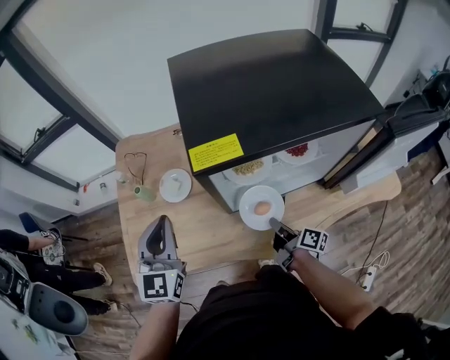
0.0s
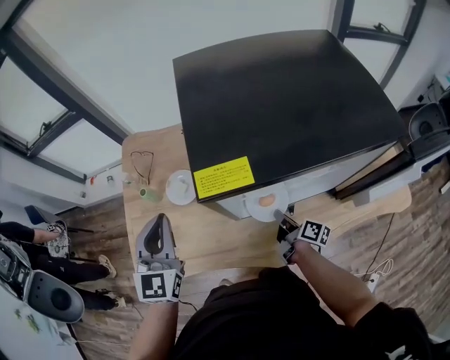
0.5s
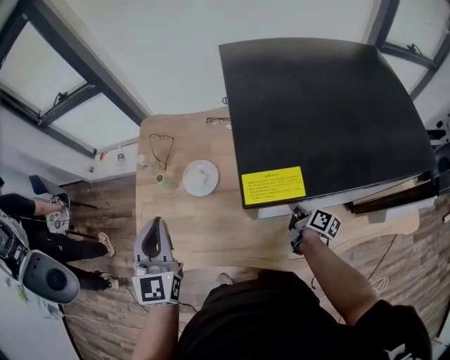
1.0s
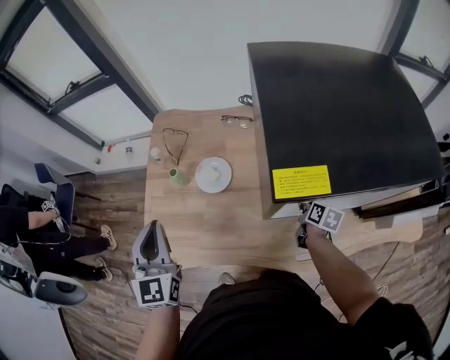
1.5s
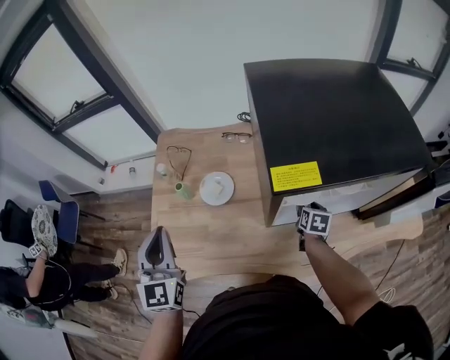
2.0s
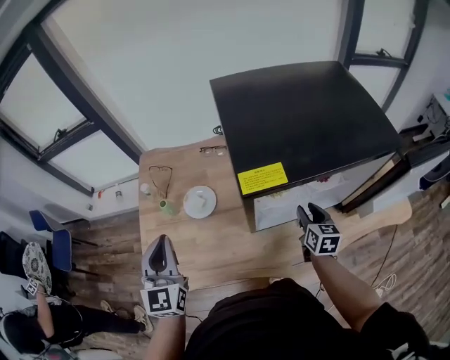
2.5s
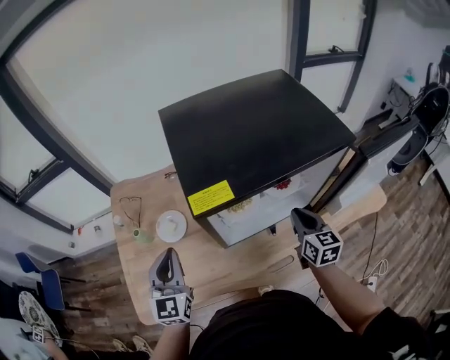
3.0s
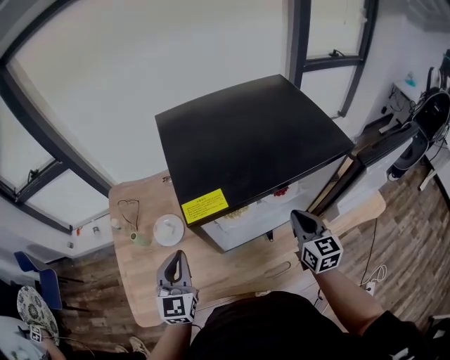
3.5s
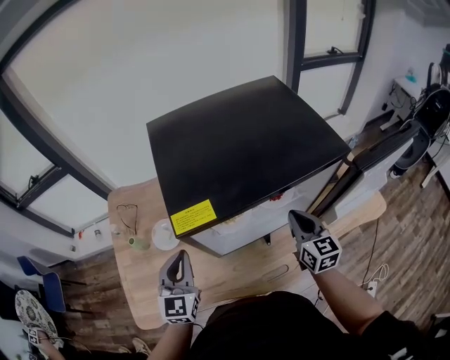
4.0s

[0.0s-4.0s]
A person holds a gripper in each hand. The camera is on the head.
0.0s to 2.0s: The right gripper goes some 15 cm forward, points its fingers about 30 degrees further downward, and opens its fingers; the left gripper moves to the left, roughly 15 cm.
2.0s to 4.0s: The left gripper heads to the right, covering some 20 cm, and turns by some 20 degrees. Meanwhile the right gripper moves upward and to the right, roughly 25 cm, points its fingers roughly 30 degrees further upward, and closes its fingers.

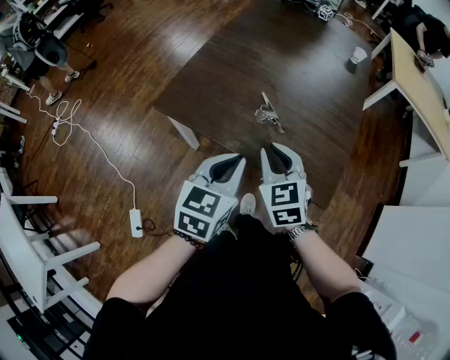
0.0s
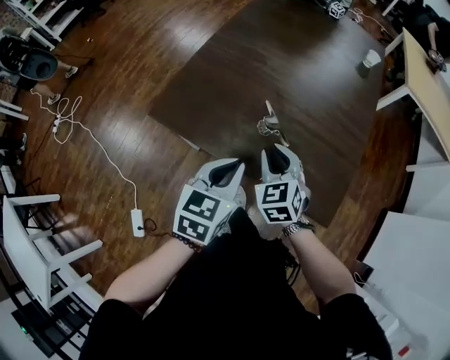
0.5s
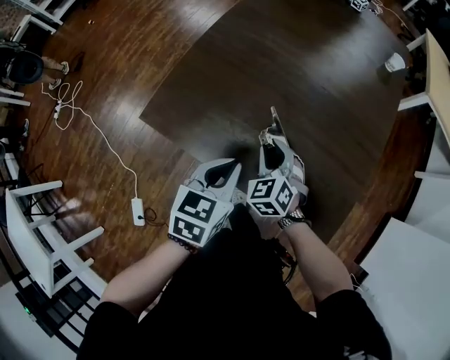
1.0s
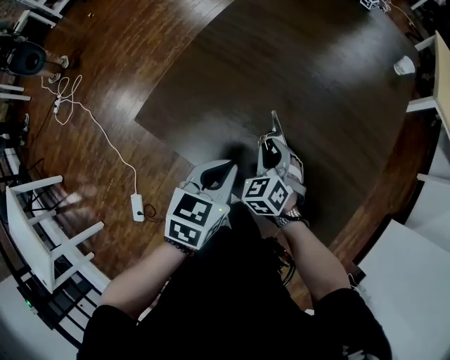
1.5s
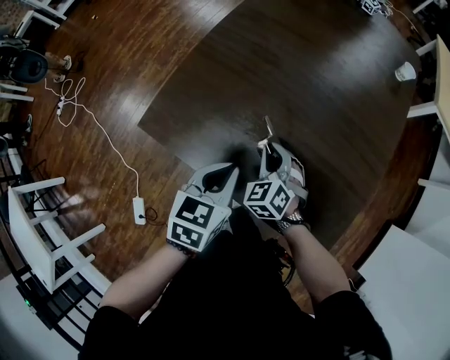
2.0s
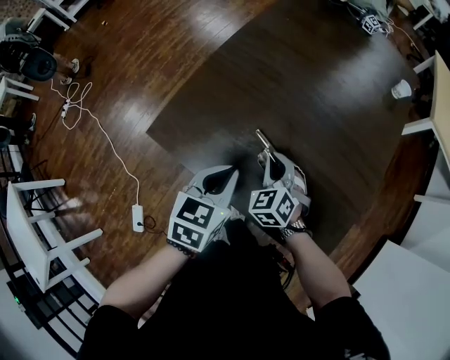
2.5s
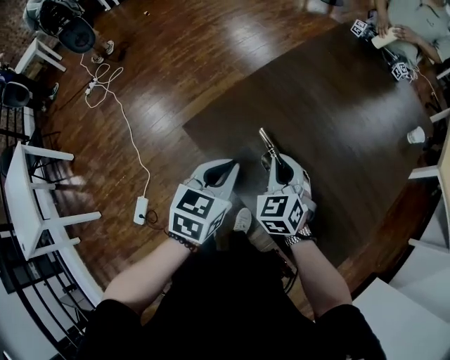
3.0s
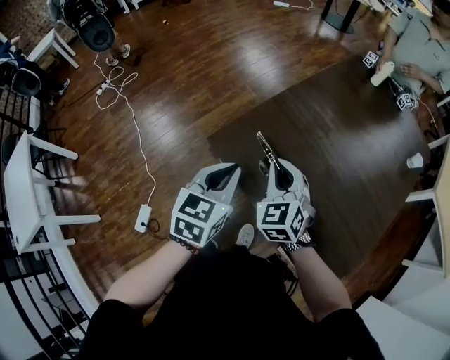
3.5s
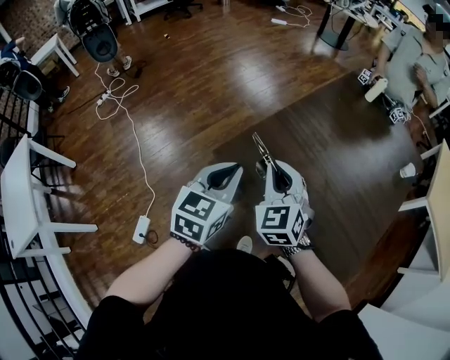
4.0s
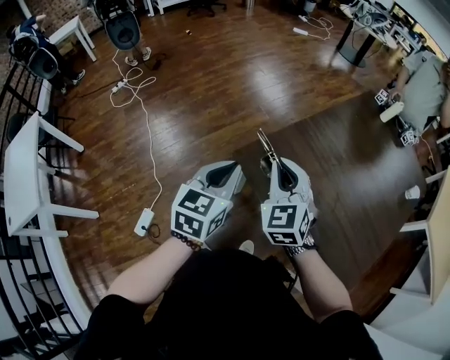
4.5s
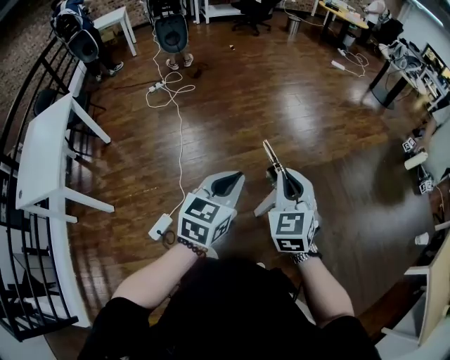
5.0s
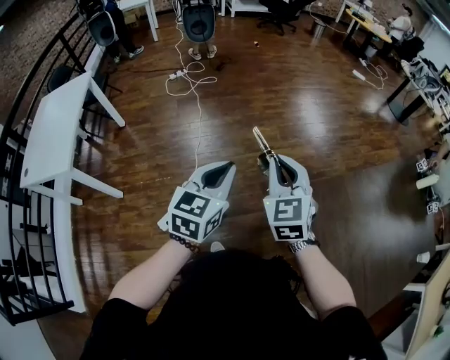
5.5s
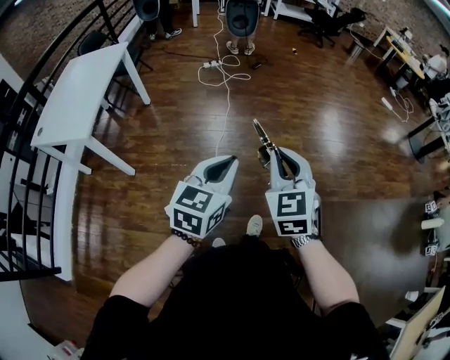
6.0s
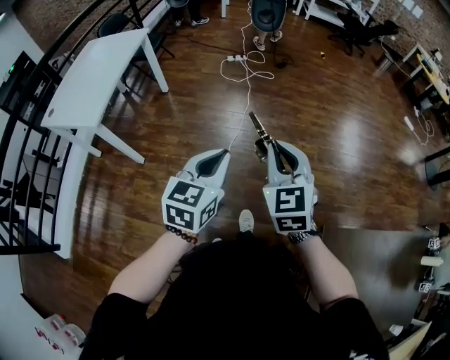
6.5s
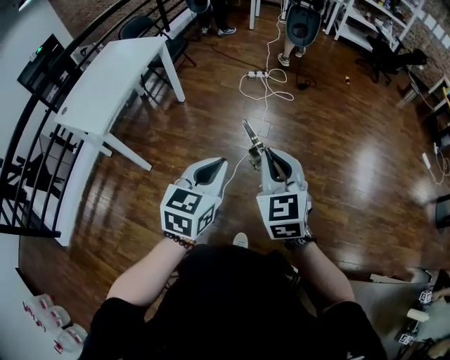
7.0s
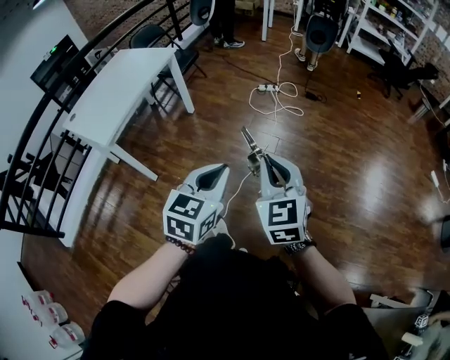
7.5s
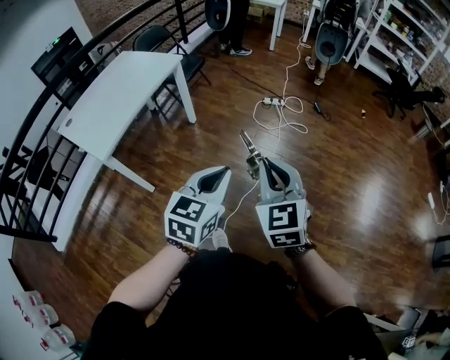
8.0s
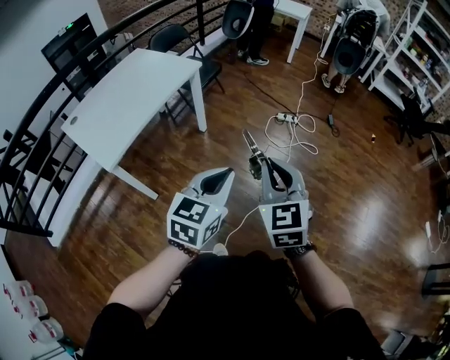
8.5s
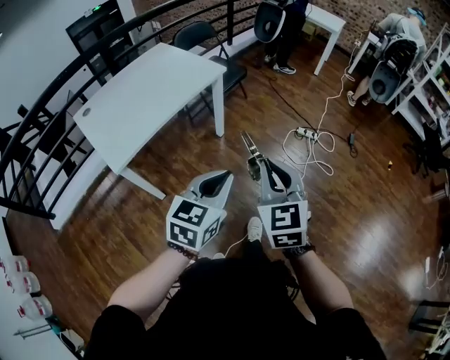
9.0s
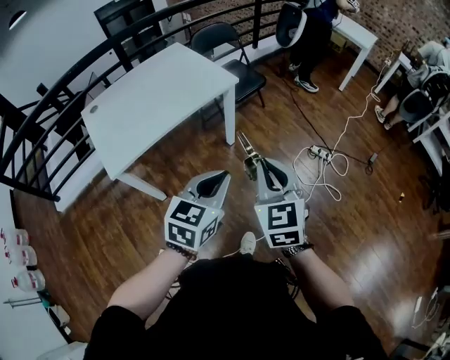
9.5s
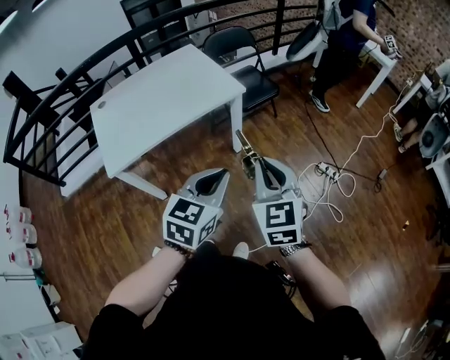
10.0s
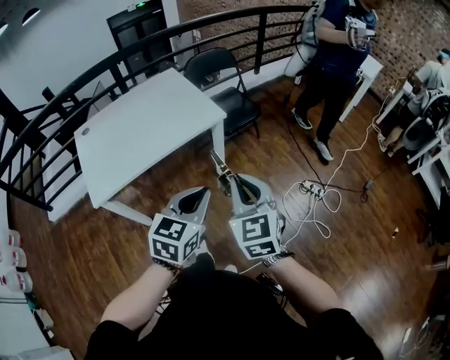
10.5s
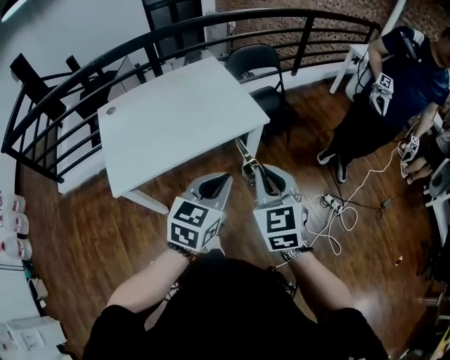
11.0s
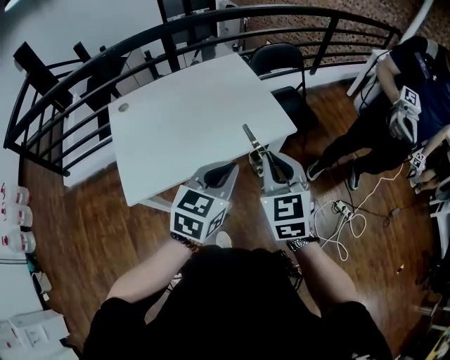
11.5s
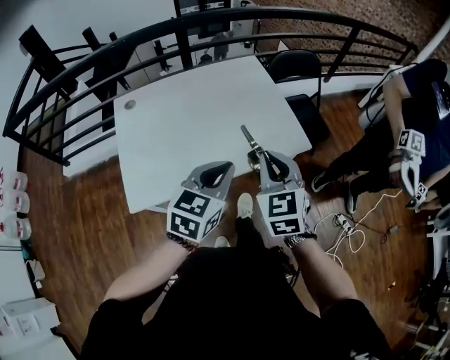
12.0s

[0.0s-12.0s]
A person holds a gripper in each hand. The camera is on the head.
0.0s to 2.0s: Both grippers move forward and downward, roughly 20 cm. The right gripper turns by about 20 degrees.
2.0s to 4.0s: The right gripper heads upward and to the left, covering some 30 cm, and swivels approximately 30 degrees; the left gripper is displaced to the left and upward by approximately 25 cm, and swivels about 30 degrees.
4.0s to 6.0s: The two grippers travel together, approximately 40 cm. The right gripper rotates roughly 40 degrees, while the left gripper turns by approximately 40 degrees.
6.0s to 8.0s: The right gripper shifts by roughly 35 cm, and rotates approximately 30 degrees. The left gripper shifts by about 35 cm, and swivels about 30 degrees.
8.0s to 10.0s: The left gripper ends up about 40 cm from where it was, and changes its angle by some 30 degrees; the right gripper shifts by about 40 cm, and swivels about 30 degrees.
10.0s to 12.0s: The two grippers go approximately 40 cm forward and to the left.

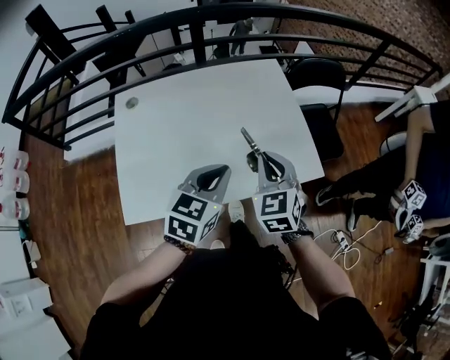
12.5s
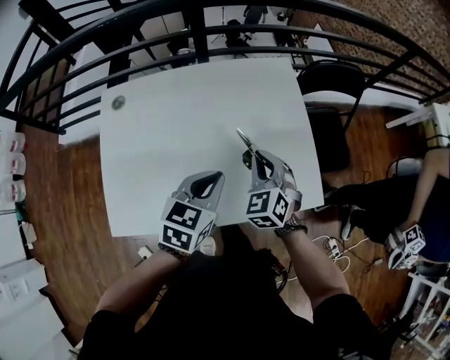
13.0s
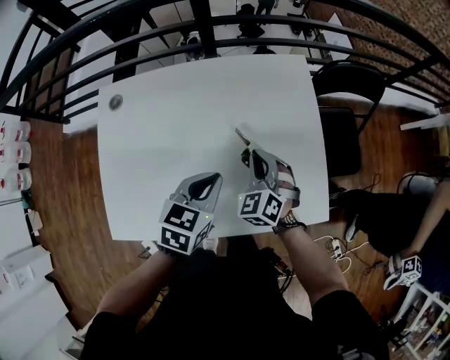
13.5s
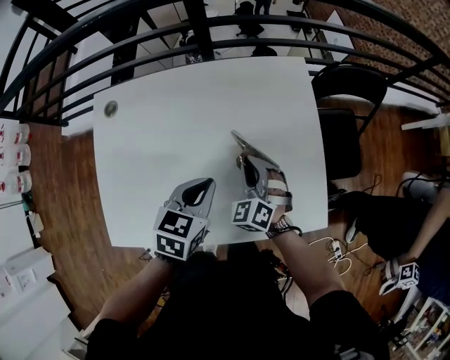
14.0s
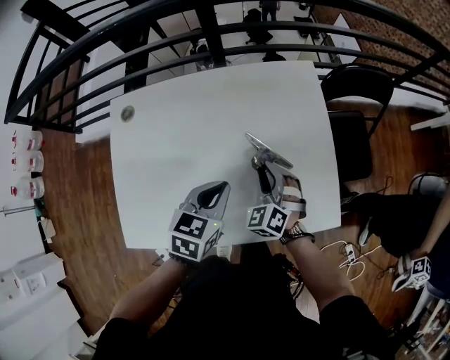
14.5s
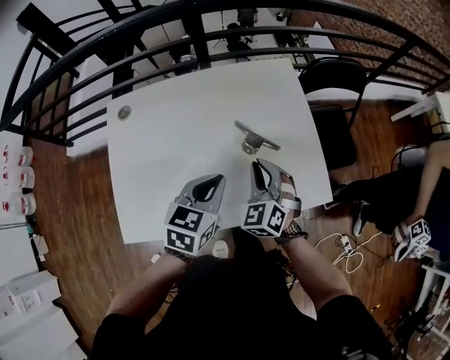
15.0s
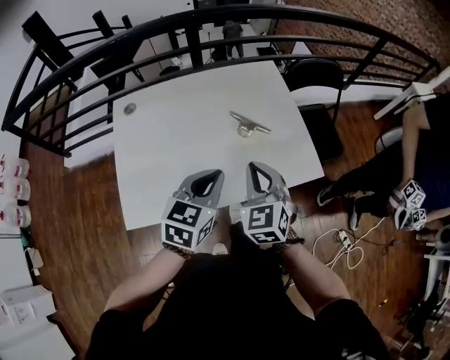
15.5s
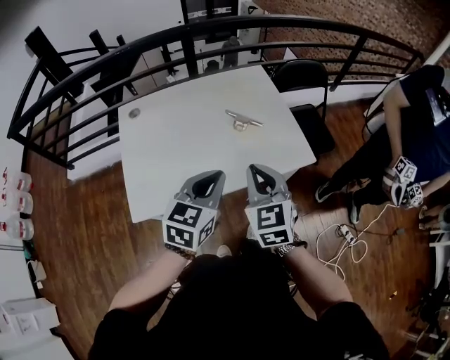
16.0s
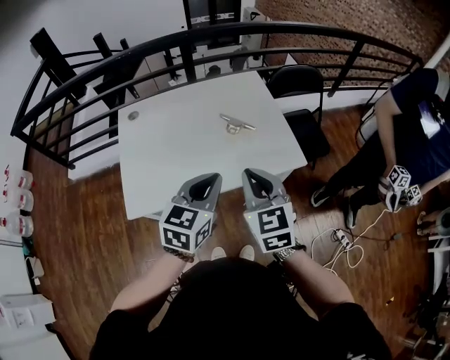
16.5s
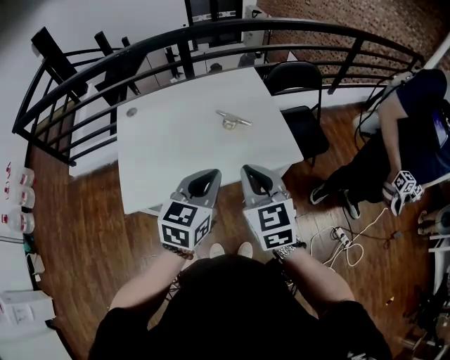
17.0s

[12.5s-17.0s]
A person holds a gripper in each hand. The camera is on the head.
12.5s to 14.5s: The left gripper moves forward and downward, approximately 15 cm; the right gripper shifts about 25 cm downward and forward, turns by approximately 30 degrees, and opens its fingers.
14.5s to 17.0s: Both grippers travel together backward and upward, approximately 35 cm. The left gripper swivels approximately 20 degrees. The right gripper changes its angle by roughly 40 degrees, and closes up.

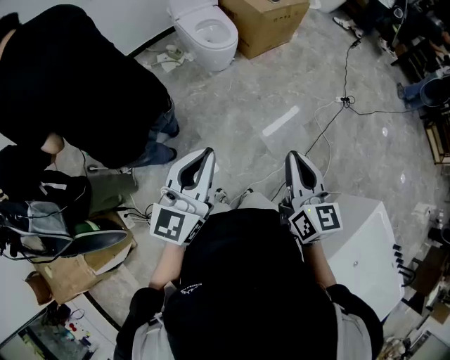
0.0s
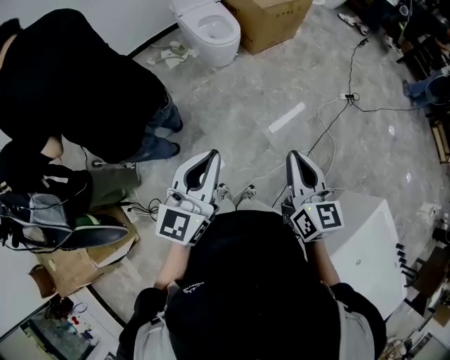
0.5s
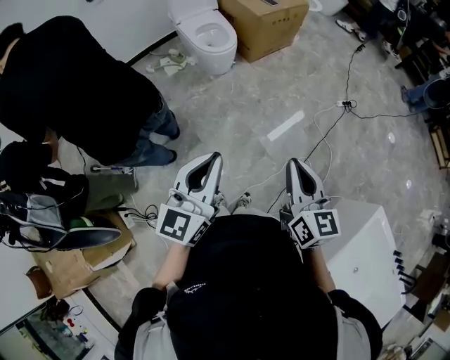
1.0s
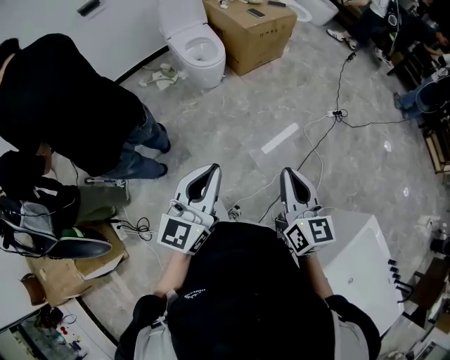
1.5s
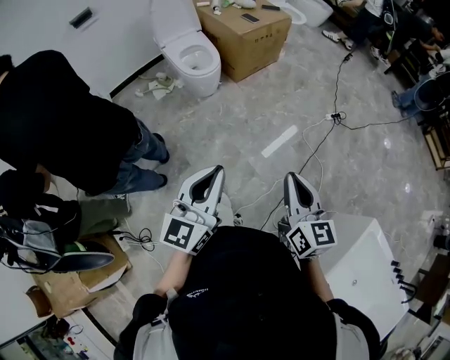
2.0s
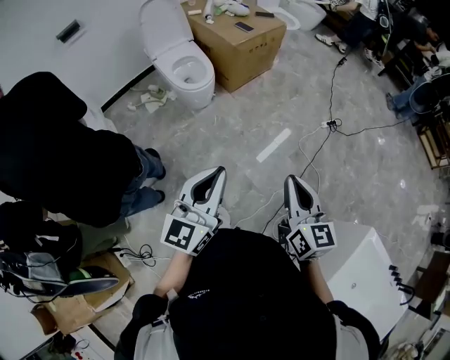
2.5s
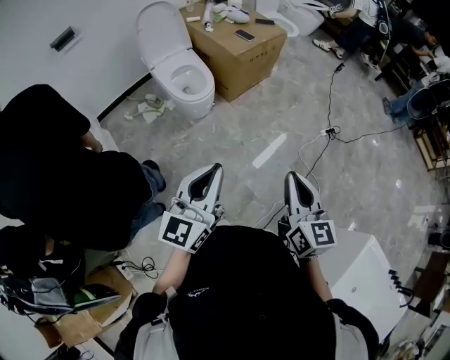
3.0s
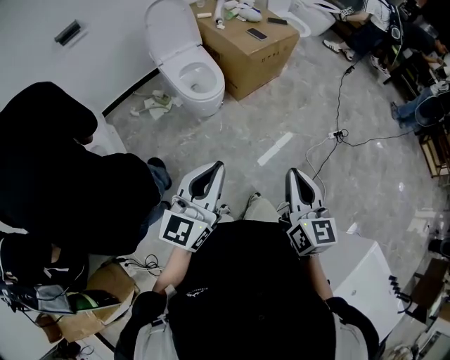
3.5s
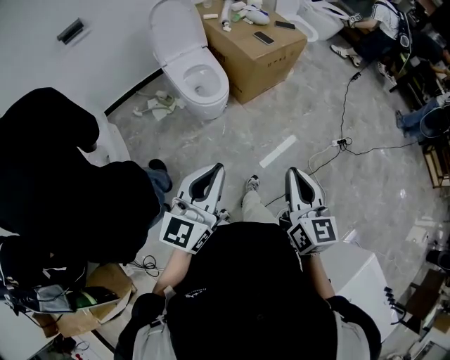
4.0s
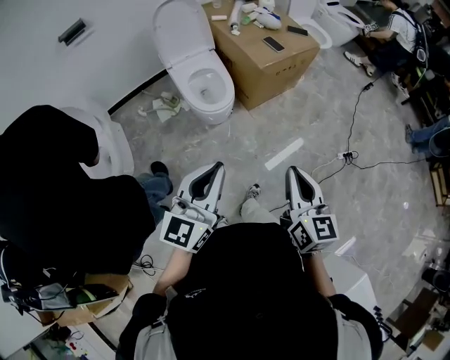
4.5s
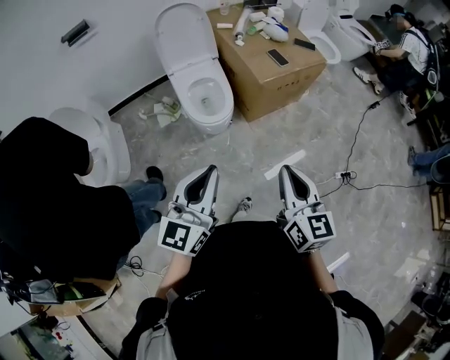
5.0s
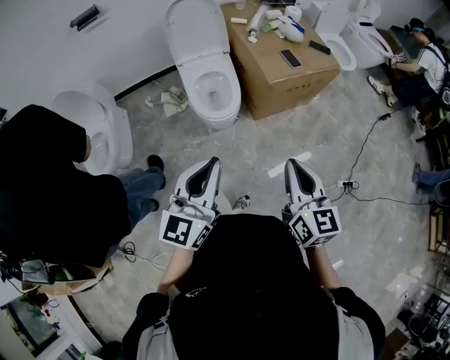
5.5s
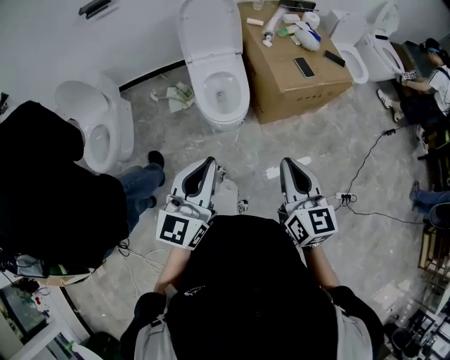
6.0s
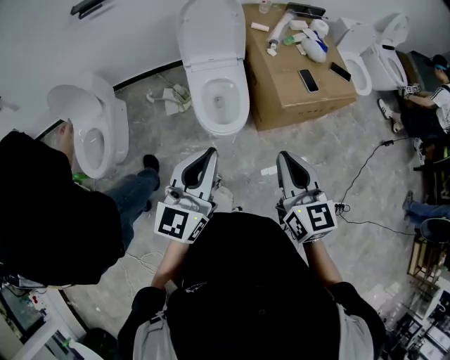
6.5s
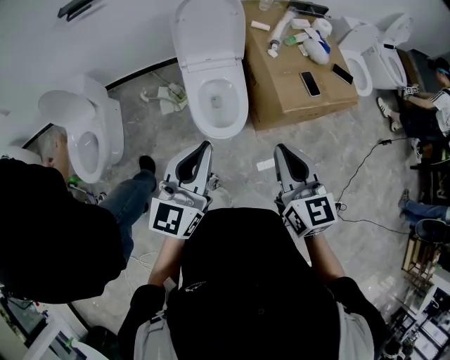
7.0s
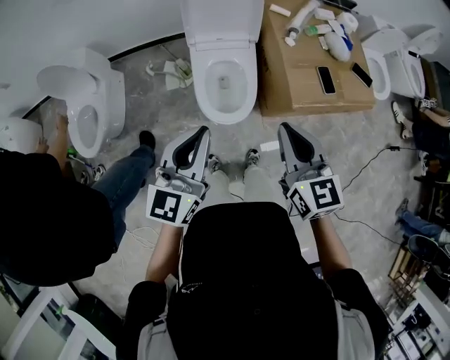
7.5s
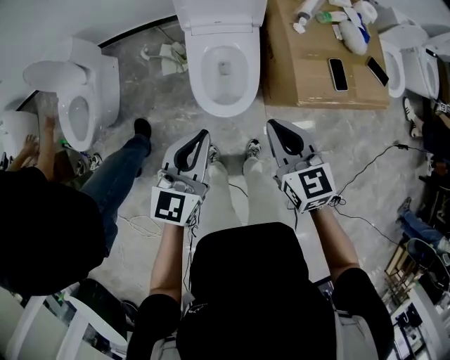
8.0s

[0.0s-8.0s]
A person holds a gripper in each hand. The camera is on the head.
0.0s to 2.0s: Both grippers move to the right, approximately 15 cm.
2.0s to 4.0s: The grippers both shift forward and to the left by approximately 30 cm.
4.0s to 6.0s: Both grippers travel together forward, approximately 30 cm. The left gripper turns by some 20 degrees; the right gripper turns by about 20 degrees.
6.0s to 8.0s: Both grippers move forward and downward, some 35 cm. The right gripper changes its angle by approximately 30 degrees.
